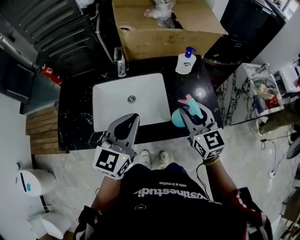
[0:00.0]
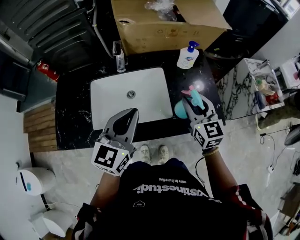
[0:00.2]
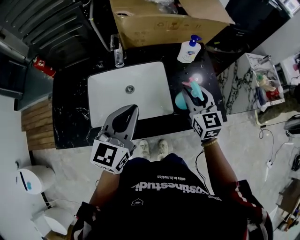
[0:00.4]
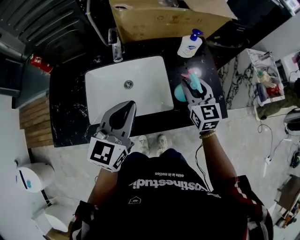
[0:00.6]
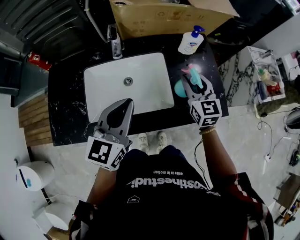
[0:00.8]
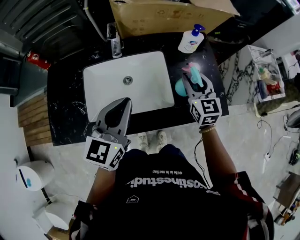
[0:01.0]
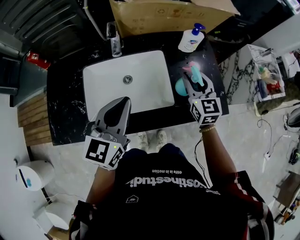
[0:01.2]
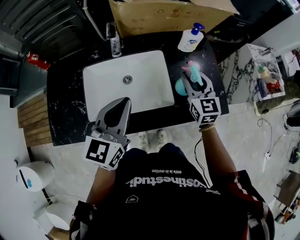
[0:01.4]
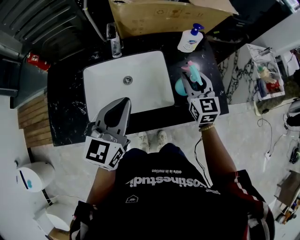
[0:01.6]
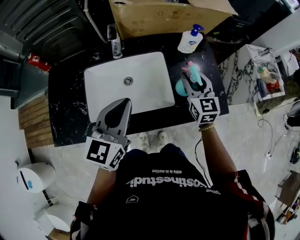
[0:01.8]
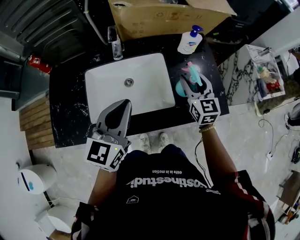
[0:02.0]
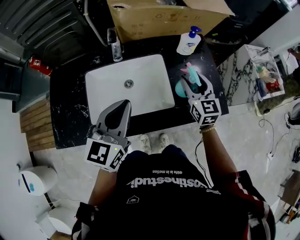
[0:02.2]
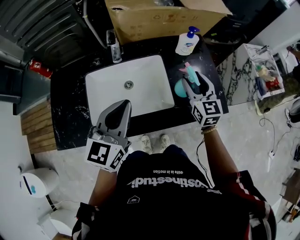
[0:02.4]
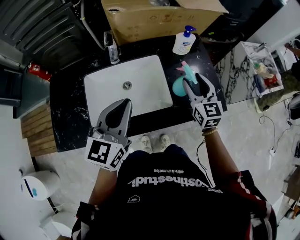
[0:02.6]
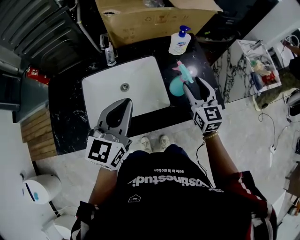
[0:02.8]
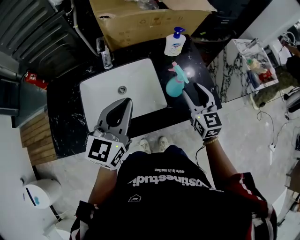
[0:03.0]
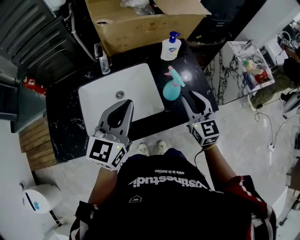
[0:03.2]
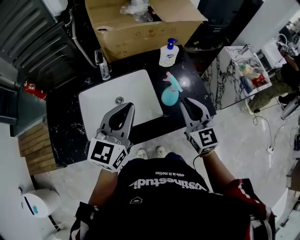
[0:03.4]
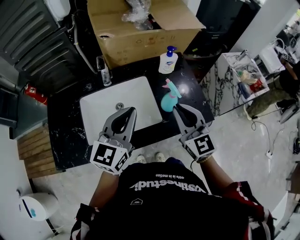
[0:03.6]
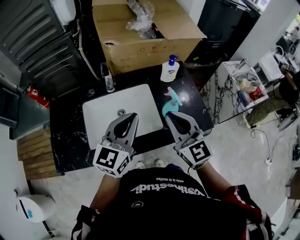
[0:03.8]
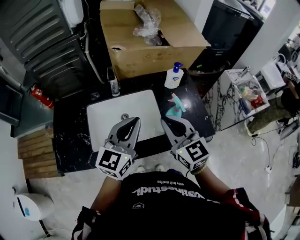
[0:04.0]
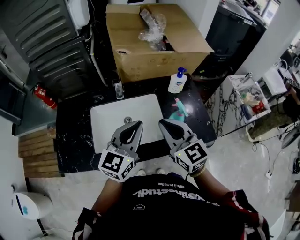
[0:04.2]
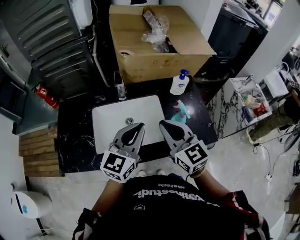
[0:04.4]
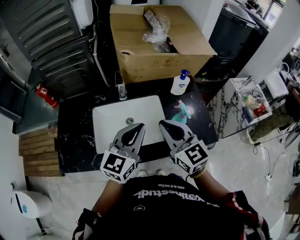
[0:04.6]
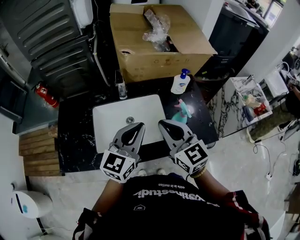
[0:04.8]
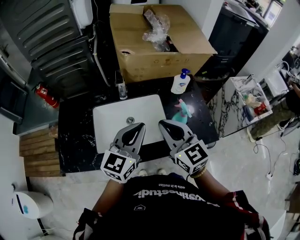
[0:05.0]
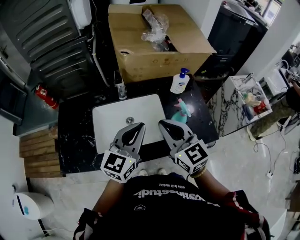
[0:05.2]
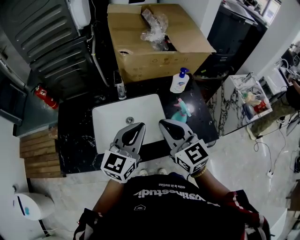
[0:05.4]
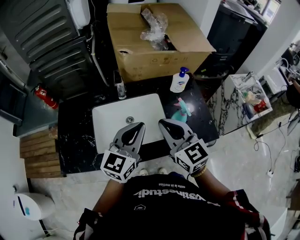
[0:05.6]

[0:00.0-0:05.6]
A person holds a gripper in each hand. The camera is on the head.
0:00.0 to 0:01.4: The right gripper goes approximately 15 cm forward and downward. The left gripper ends up some 5 cm from where it was.
0:01.4 to 0:02.8: The right gripper shifts by about 5 cm.
0:02.8 to 0:04.2: The right gripper travels to the left, upward and backward by approximately 20 cm, rotates some 20 degrees, and closes up.
0:04.2 to 0:05.6: The grippers stay close to where they were, moving slightly.

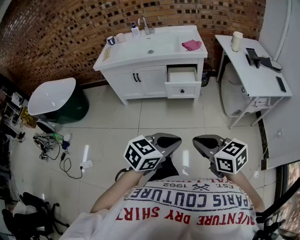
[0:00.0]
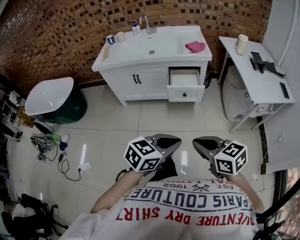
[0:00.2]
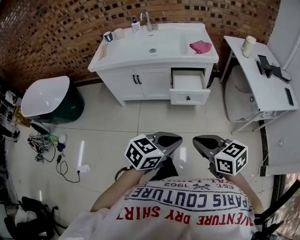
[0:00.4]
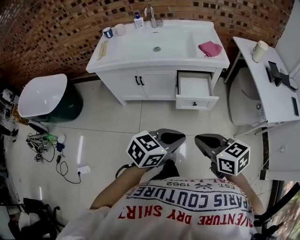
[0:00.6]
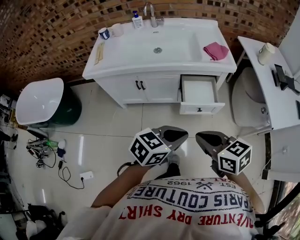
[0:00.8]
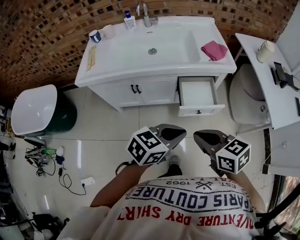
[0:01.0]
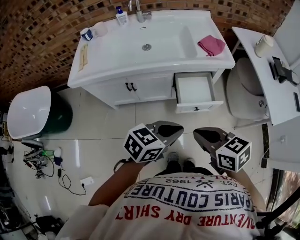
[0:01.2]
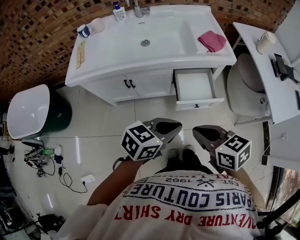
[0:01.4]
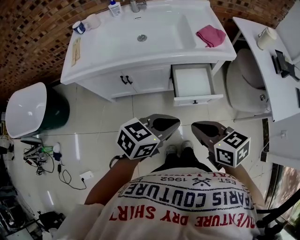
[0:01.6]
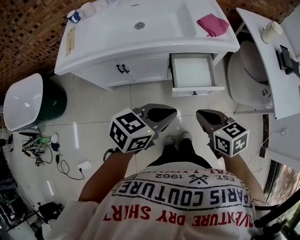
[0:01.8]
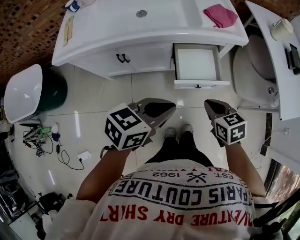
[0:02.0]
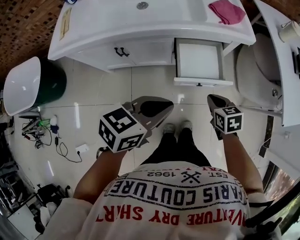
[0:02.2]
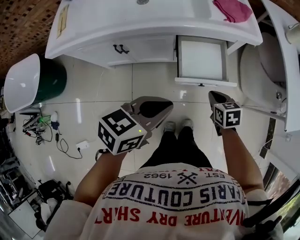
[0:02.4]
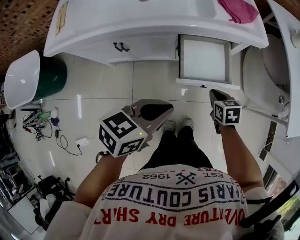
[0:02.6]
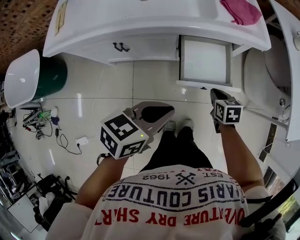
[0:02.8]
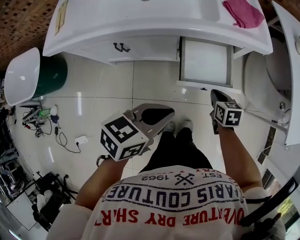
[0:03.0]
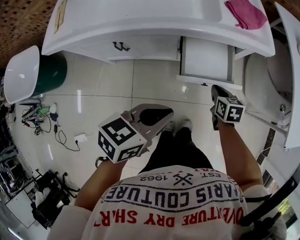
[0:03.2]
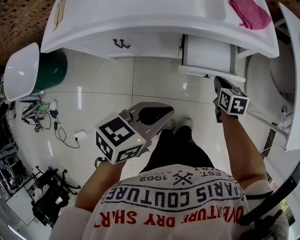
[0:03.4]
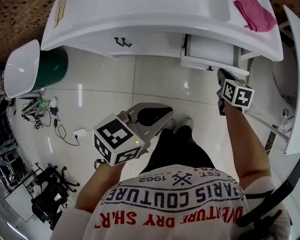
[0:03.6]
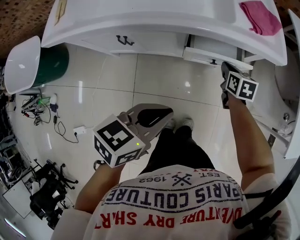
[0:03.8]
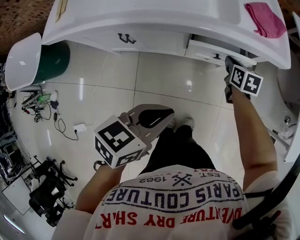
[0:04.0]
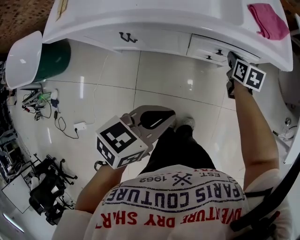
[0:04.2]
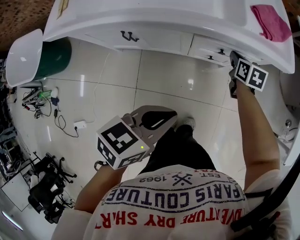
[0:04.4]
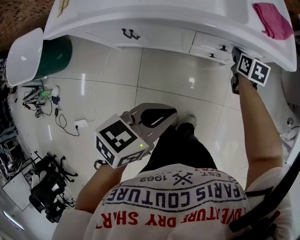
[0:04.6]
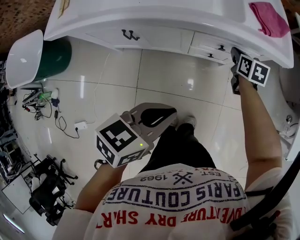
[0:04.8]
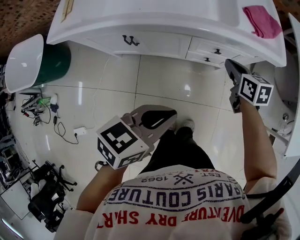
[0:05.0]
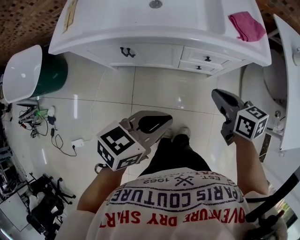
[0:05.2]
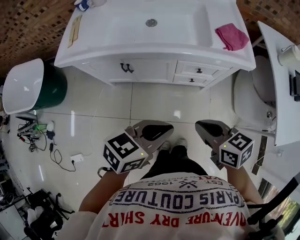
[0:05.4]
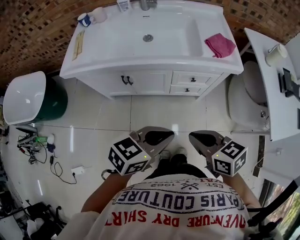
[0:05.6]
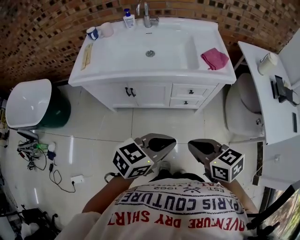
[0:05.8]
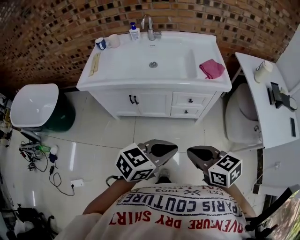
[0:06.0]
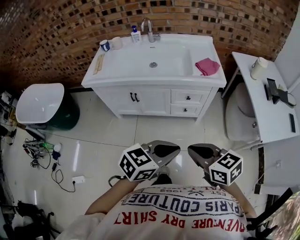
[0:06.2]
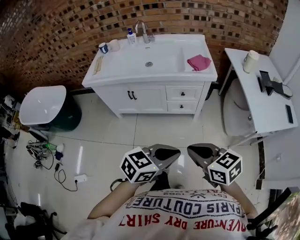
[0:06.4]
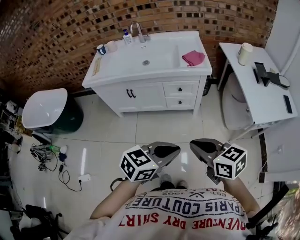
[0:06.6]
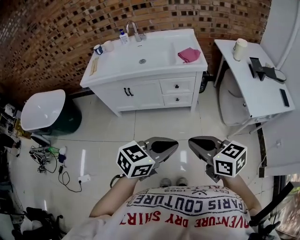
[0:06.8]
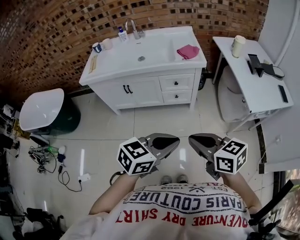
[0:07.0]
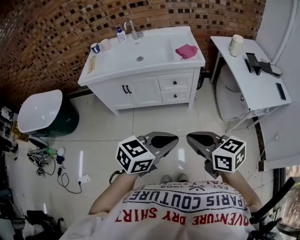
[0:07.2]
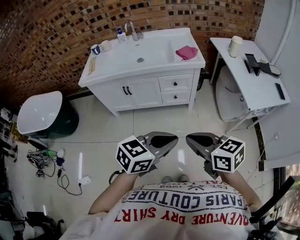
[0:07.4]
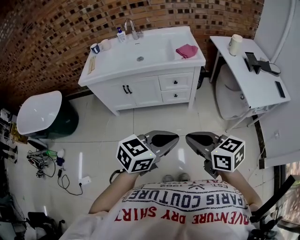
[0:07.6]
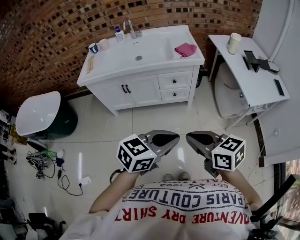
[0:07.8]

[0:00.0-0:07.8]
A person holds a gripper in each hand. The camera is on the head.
0:00.0 to 0:01.6: Both grippers are carried forward and to the left, roughly 40 cm.
0:01.6 to 0:03.2: The right gripper is displaced downward and forward by approximately 35 cm, and turns by about 30 degrees; the left gripper travels downward and forward by some 10 cm.
0:03.2 to 0:04.6: The right gripper moves forward, approximately 15 cm.
0:04.6 to 0:06.2: The right gripper moves backward and upward, about 60 cm, and swivels roughly 40 degrees, while the left gripper shifts roughly 30 cm backward, upward and to the right, and rotates approximately 30 degrees.
0:06.2 to 0:07.8: The grippers both shift backward by about 15 cm.

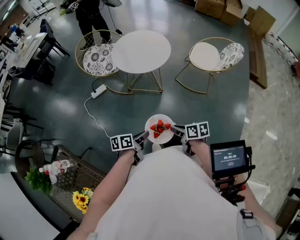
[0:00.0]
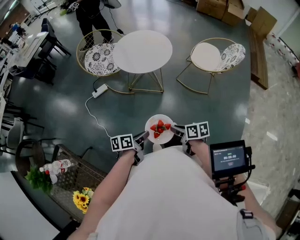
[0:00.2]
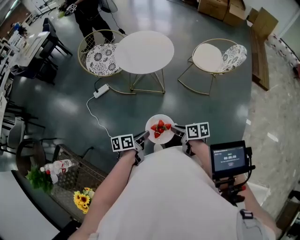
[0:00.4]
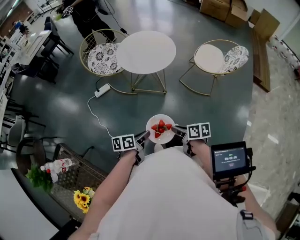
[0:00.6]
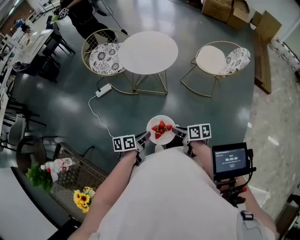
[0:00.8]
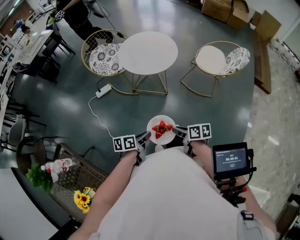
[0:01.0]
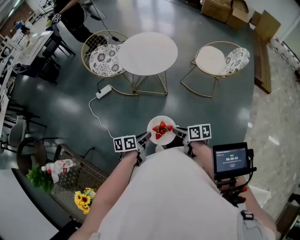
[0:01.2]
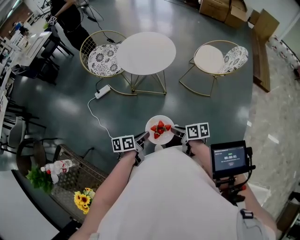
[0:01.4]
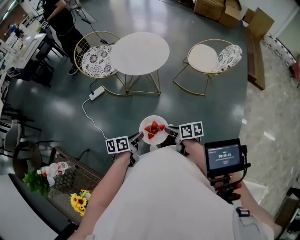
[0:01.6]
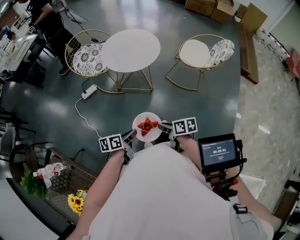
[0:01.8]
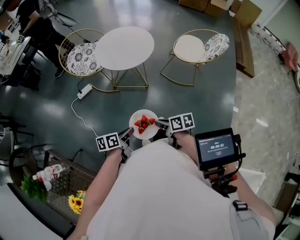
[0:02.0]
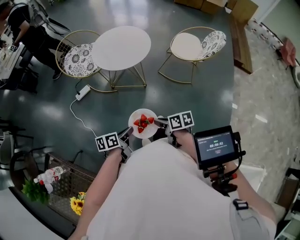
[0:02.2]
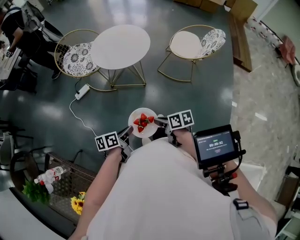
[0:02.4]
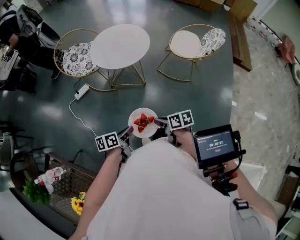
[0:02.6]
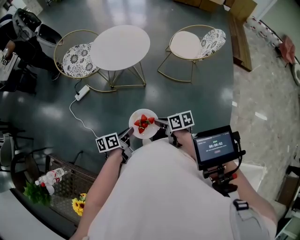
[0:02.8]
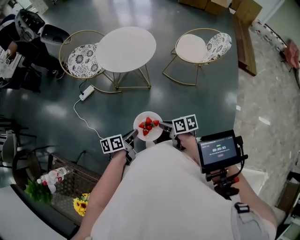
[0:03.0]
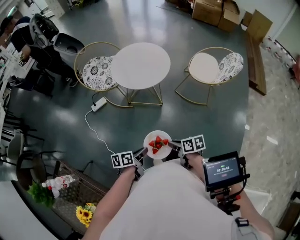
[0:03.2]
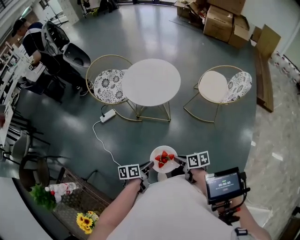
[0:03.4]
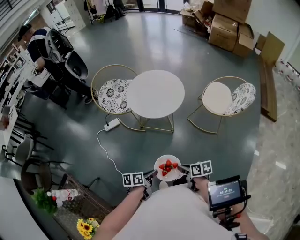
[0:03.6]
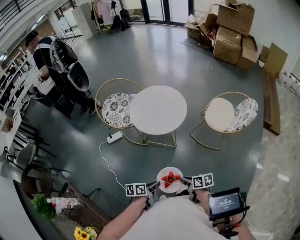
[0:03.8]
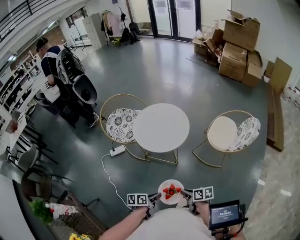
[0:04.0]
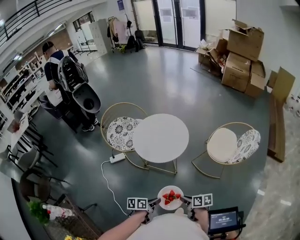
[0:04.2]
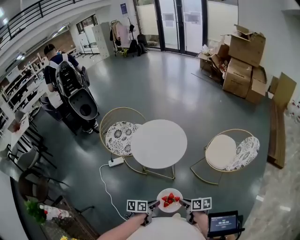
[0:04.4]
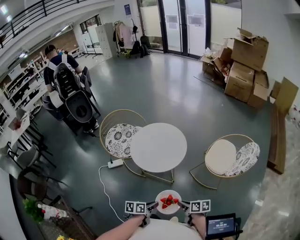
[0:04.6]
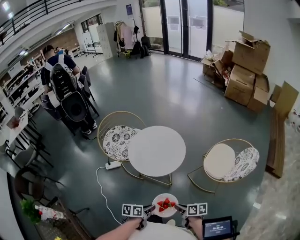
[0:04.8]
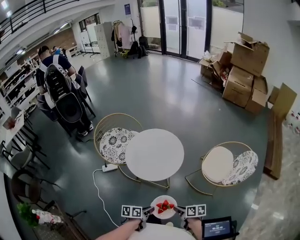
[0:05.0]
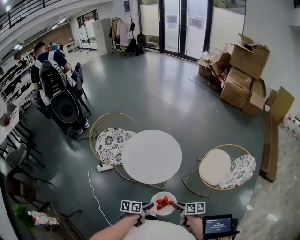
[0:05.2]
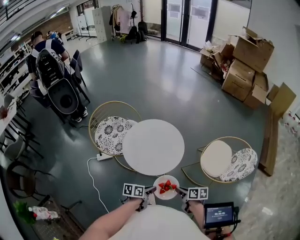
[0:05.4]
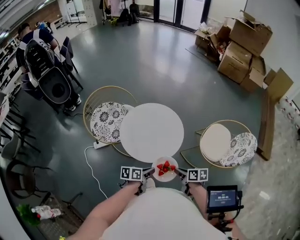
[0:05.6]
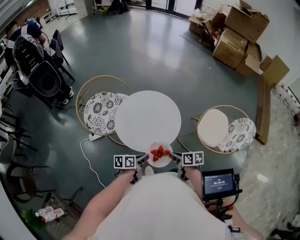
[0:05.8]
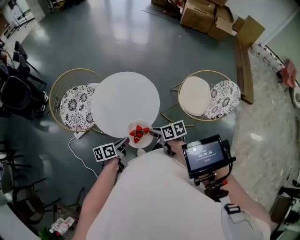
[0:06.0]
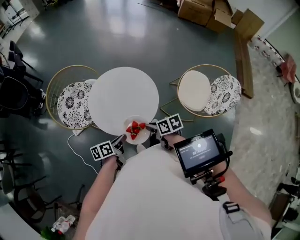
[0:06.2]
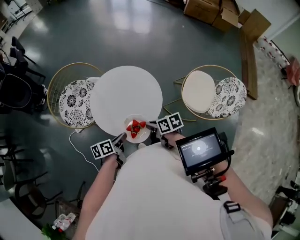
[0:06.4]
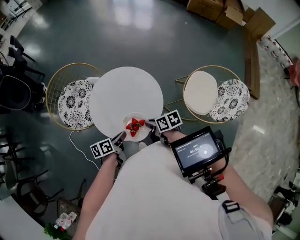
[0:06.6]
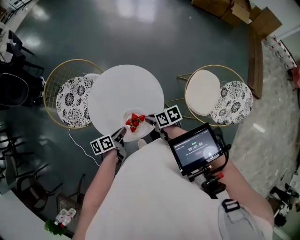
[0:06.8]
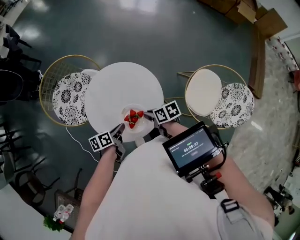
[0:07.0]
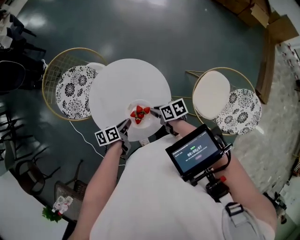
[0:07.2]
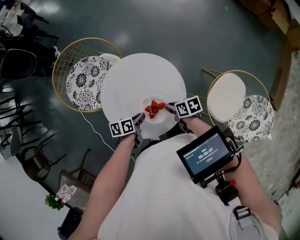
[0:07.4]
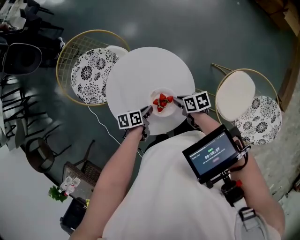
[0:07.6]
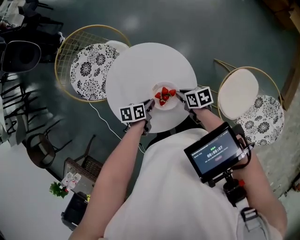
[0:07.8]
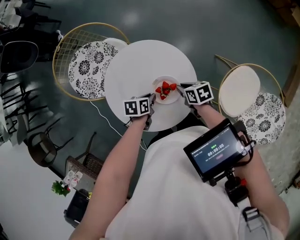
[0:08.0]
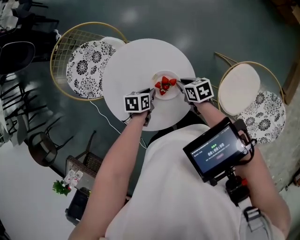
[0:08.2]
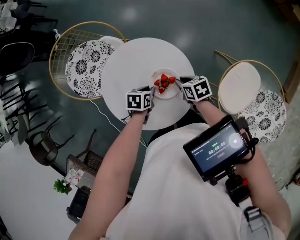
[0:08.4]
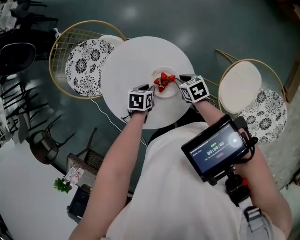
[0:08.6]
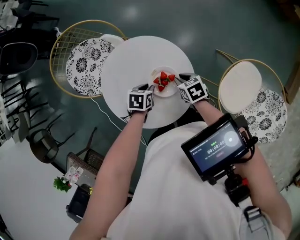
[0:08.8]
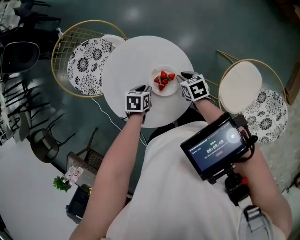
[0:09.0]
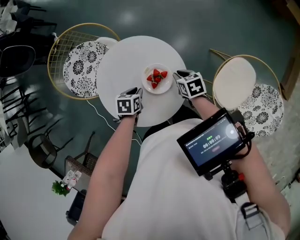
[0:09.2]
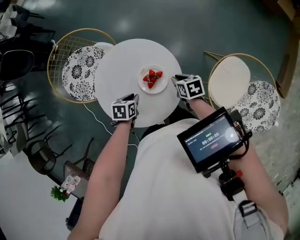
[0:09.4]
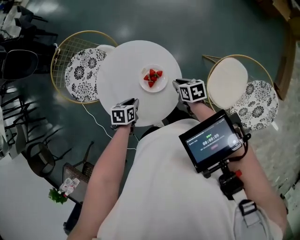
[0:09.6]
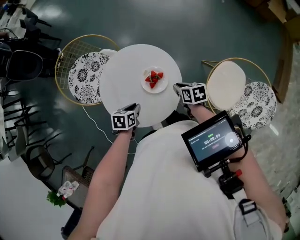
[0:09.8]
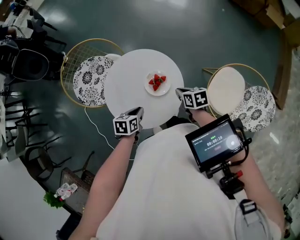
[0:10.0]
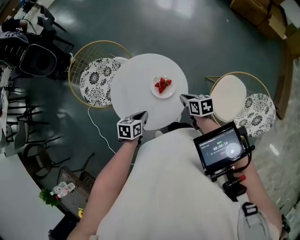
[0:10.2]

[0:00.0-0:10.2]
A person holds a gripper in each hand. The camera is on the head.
0:00.0 to 0:01.4: The two grippers keep their place.
0:01.4 to 0:03.0: Both grippers stay about where they are.
0:03.0 to 0:04.4: Both grippers travel together forward and to the right, about 20 cm.
0:04.4 to 0:05.8: Both grippers move forward, roughly 25 cm.
0:05.8 to 0:07.2: The left gripper shifts by roughly 20 cm. Meanwhile the right gripper moves some 25 cm, and swivels about 20 degrees.
0:07.2 to 0:08.8: The left gripper shifts by some 10 cm, and turns by approximately 40 degrees, while the right gripper shifts by roughly 10 cm, and rotates some 30 degrees.
0:08.8 to 0:10.2: The right gripper heads upward and backward, covering approximately 15 cm, and rotates some 20 degrees. The left gripper goes approximately 15 cm backward and upward, and changes its angle by some 20 degrees.
